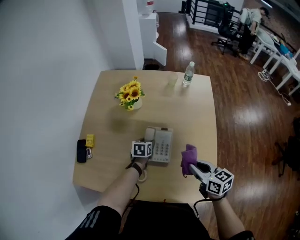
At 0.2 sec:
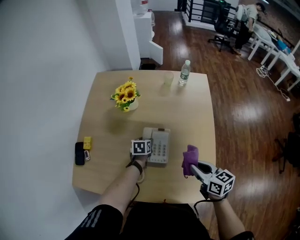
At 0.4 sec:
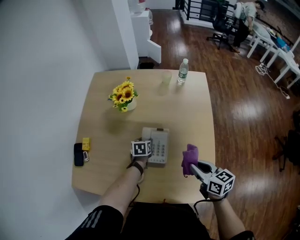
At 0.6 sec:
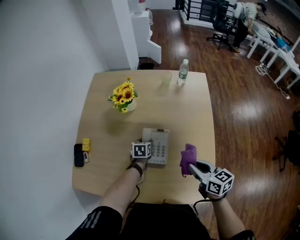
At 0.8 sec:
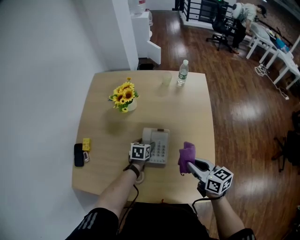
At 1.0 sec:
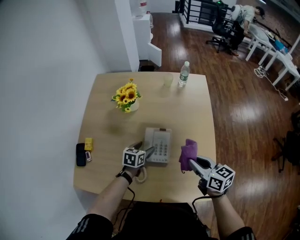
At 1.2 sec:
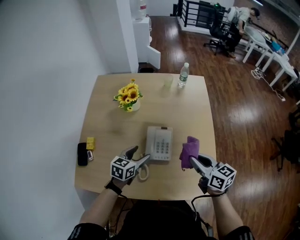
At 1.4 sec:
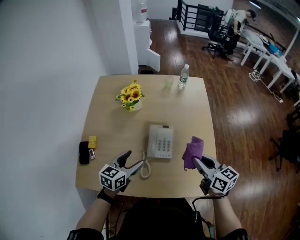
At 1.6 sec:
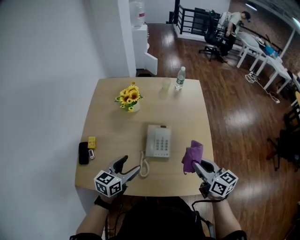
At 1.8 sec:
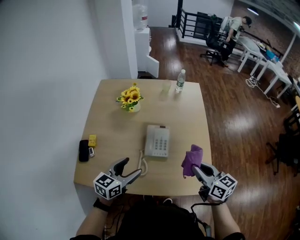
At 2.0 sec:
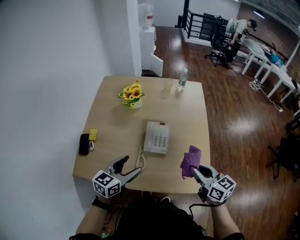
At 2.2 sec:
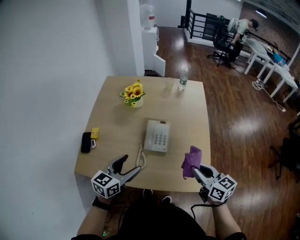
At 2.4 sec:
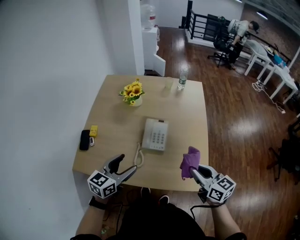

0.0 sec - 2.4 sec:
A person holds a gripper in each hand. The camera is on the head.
0.0 sec - 1.2 sec: The left gripper moves upward and backward, approximately 15 cm, and turns by some 30 degrees.
1.2 sec - 2.4 sec: The right gripper travels backward by about 15 cm; the left gripper goes about 20 cm backward and upward.

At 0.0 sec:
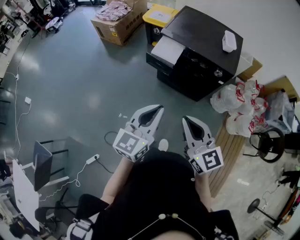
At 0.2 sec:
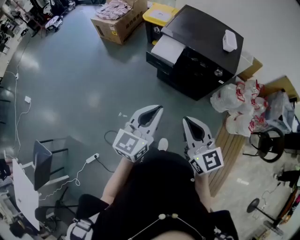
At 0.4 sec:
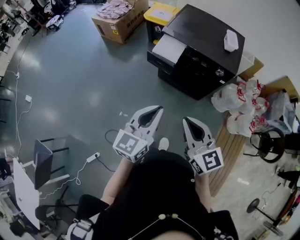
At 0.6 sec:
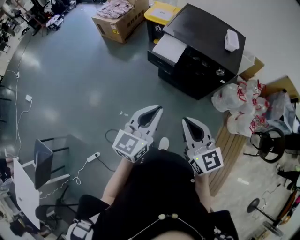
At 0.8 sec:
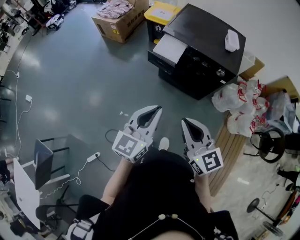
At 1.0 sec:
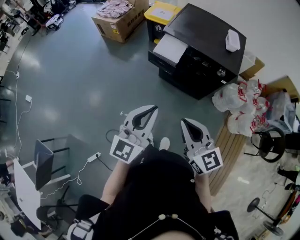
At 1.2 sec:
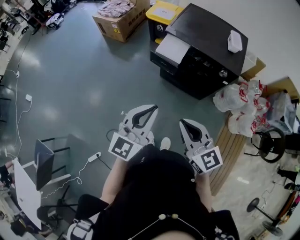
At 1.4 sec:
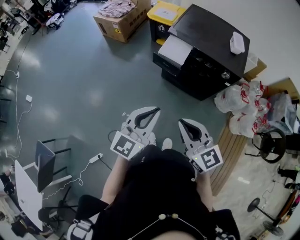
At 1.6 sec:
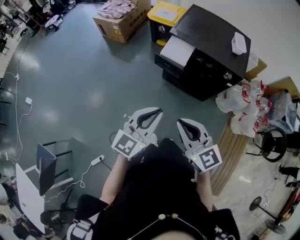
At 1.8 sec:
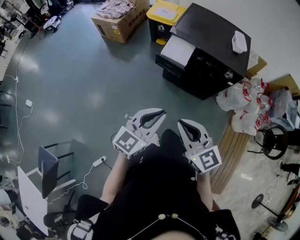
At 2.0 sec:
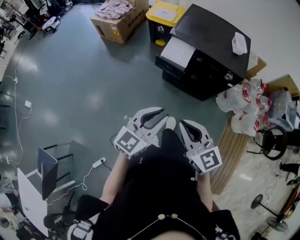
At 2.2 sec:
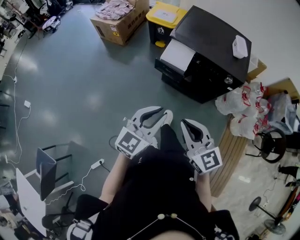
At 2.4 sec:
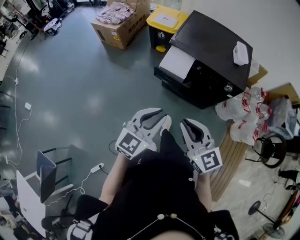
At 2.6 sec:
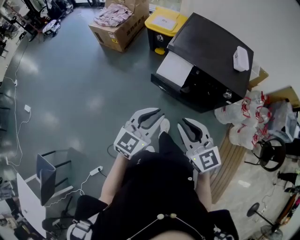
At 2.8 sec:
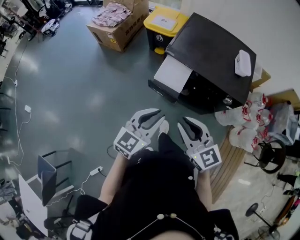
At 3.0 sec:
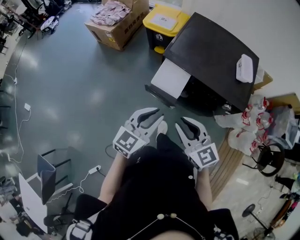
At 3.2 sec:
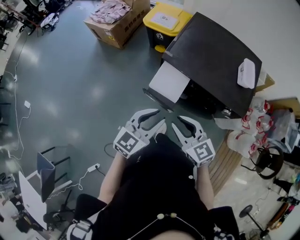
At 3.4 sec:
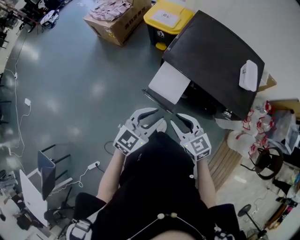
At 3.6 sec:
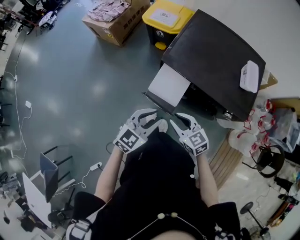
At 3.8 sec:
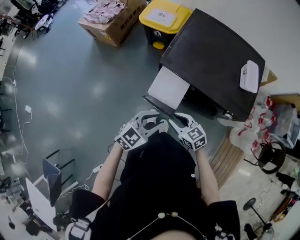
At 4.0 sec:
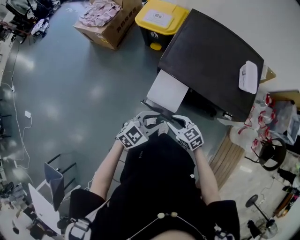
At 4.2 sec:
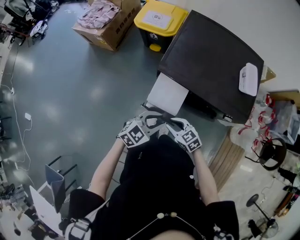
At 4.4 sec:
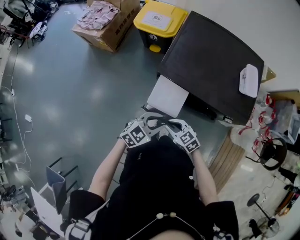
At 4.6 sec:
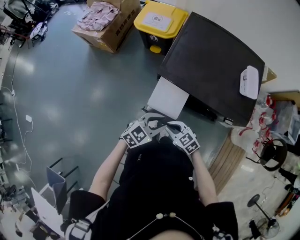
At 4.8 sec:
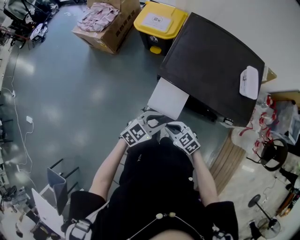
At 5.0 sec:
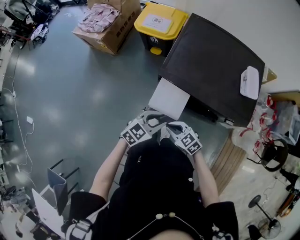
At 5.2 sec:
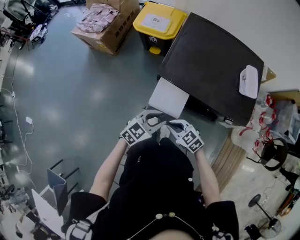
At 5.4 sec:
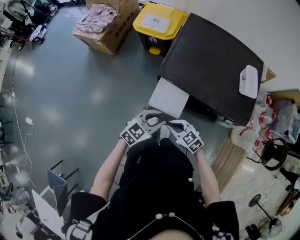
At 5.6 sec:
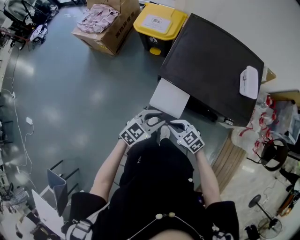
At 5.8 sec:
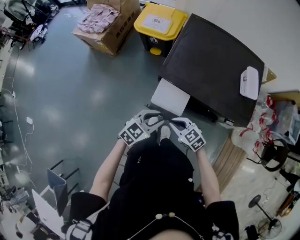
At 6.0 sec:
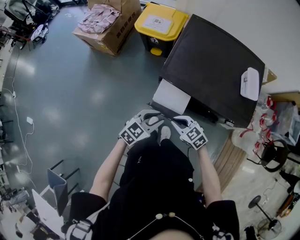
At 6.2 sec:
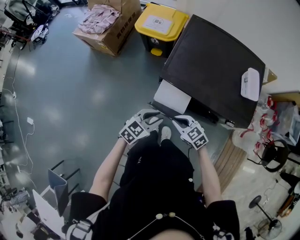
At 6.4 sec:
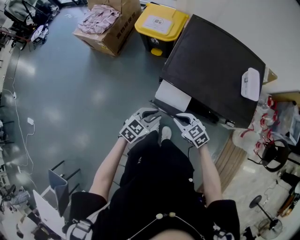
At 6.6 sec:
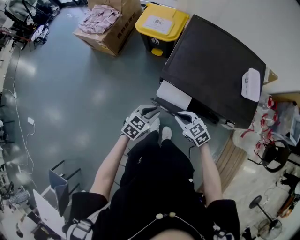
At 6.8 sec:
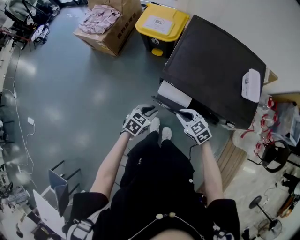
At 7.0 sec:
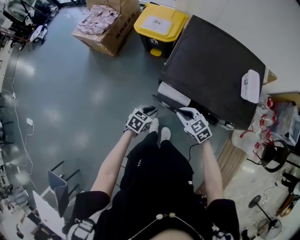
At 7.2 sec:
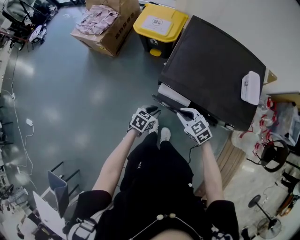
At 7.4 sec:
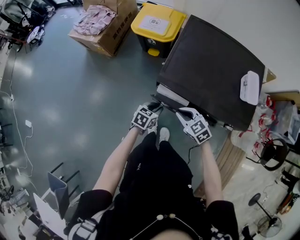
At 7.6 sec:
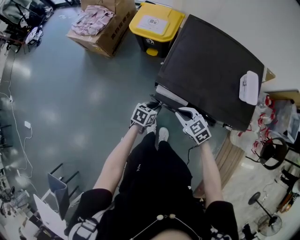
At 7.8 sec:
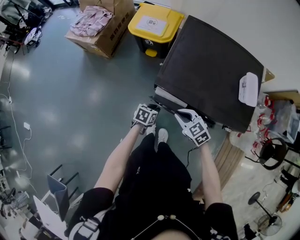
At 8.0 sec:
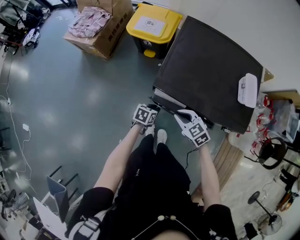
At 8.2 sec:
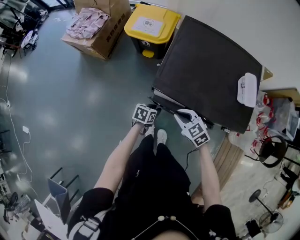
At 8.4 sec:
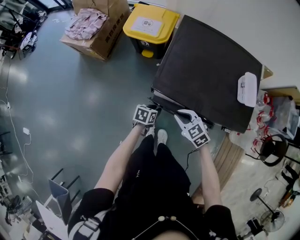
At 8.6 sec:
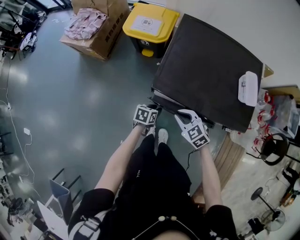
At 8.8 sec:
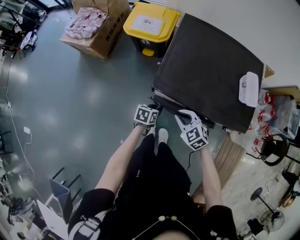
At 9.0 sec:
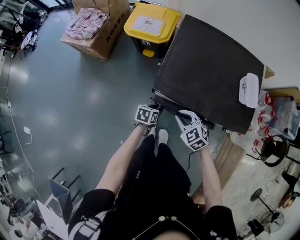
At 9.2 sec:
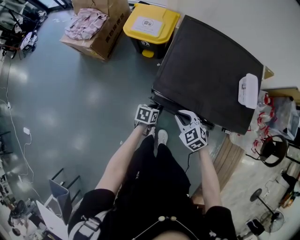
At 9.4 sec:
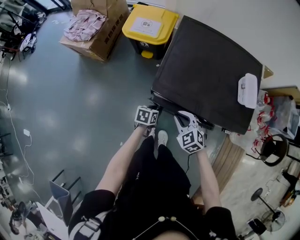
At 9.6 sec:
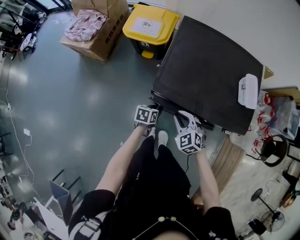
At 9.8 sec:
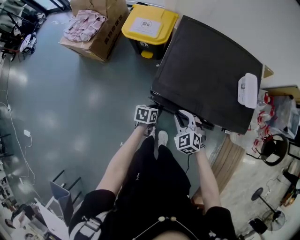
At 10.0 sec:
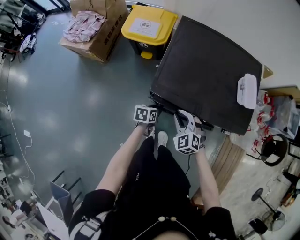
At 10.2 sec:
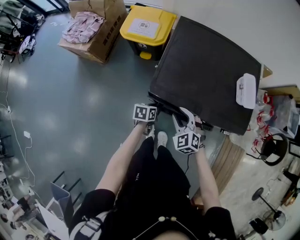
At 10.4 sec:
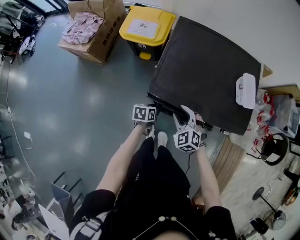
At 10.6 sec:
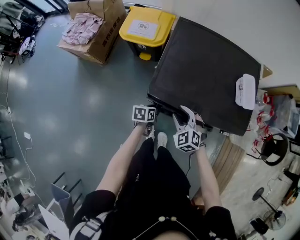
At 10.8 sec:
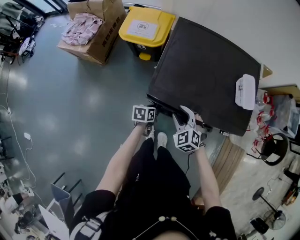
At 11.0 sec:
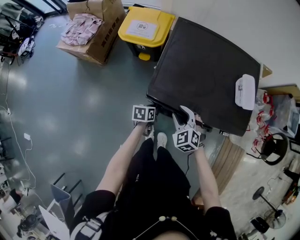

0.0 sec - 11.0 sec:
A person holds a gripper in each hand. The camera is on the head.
0.0 sec - 1.6 sec: The two grippers go approximately 5 cm to the left.
1.6 sec - 3.2 sec: Both grippers travel together forward, some 25 cm. The right gripper opens its fingers; the left gripper opens up.
3.2 sec - 4.8 sec: The grippers both shift downward by approximately 15 cm. The left gripper rotates approximately 30 degrees. The right gripper rotates some 20 degrees.
4.8 sec - 6.2 sec: The right gripper shifts by approximately 5 cm.
6.2 sec - 7.8 sec: The right gripper is displaced forward by about 5 cm, while the left gripper heads downward and forward, covering roughly 15 cm, and changes its angle by approximately 40 degrees.
7.8 sec - 9.4 sec: The grippers move only a little.
9.4 sec - 11.0 sec: The right gripper opens up.

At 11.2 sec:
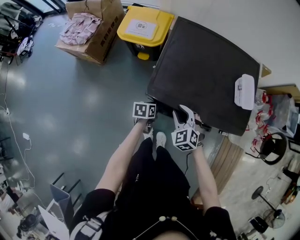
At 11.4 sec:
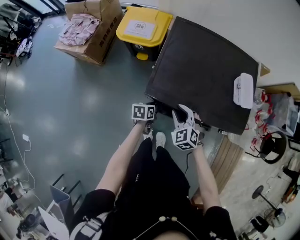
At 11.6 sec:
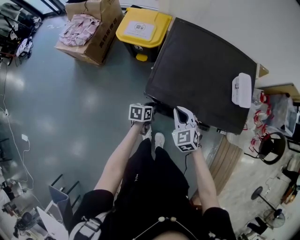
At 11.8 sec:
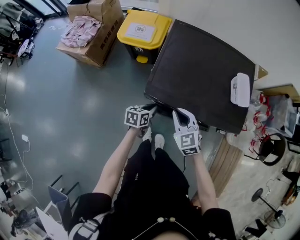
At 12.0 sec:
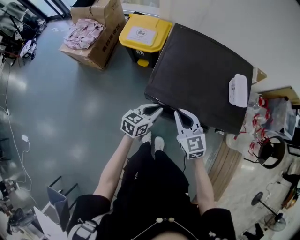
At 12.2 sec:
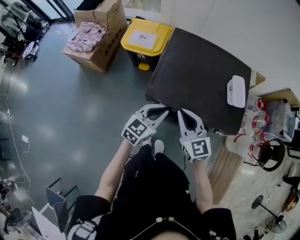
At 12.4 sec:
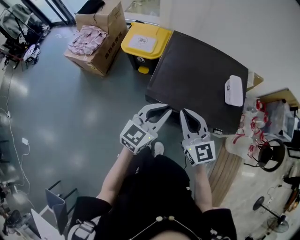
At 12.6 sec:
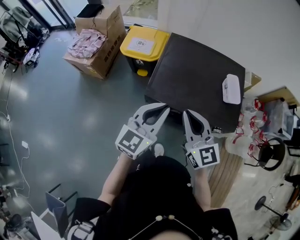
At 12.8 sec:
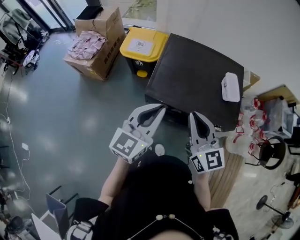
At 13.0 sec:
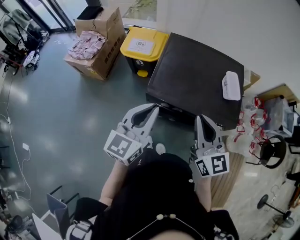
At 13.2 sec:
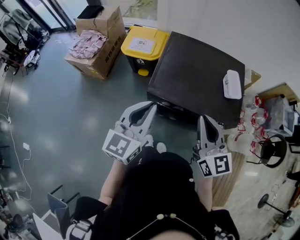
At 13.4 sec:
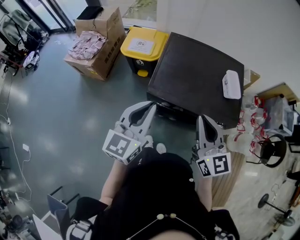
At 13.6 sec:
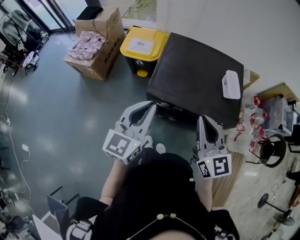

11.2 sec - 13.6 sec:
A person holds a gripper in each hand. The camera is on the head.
11.2 sec - 12.4 sec: The left gripper heads upward, covering approximately 35 cm, and points its fingers some 40 degrees further upward. Meanwhile the right gripper shifts approximately 20 cm upward, tips its fingers upward by roughly 40 degrees, and closes its fingers.
12.4 sec - 13.6 sec: The left gripper travels upward and to the left by approximately 10 cm, while the right gripper shifts approximately 10 cm upward, backward and to the right.

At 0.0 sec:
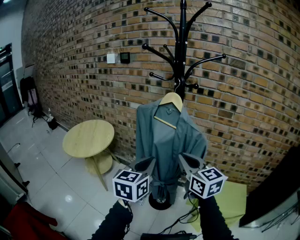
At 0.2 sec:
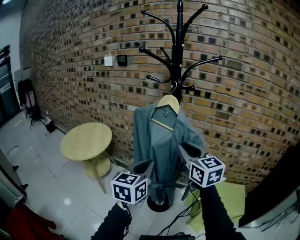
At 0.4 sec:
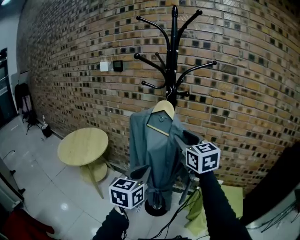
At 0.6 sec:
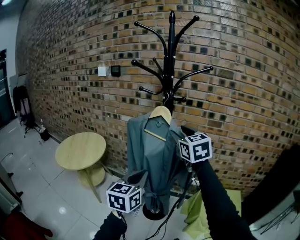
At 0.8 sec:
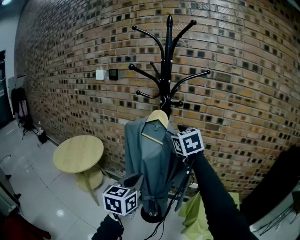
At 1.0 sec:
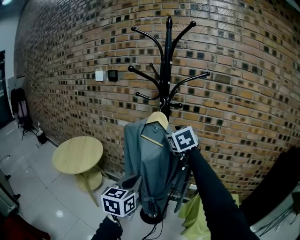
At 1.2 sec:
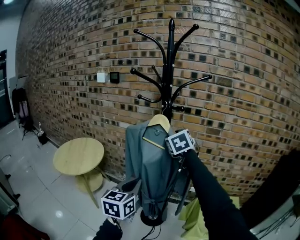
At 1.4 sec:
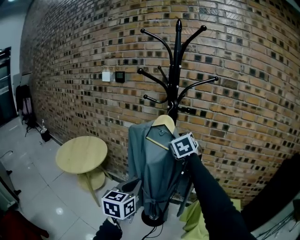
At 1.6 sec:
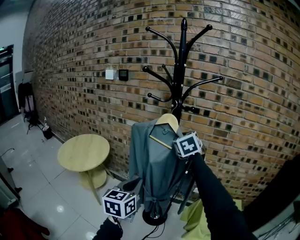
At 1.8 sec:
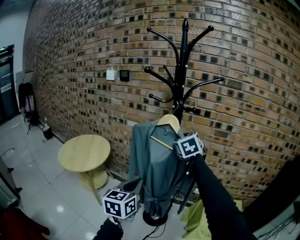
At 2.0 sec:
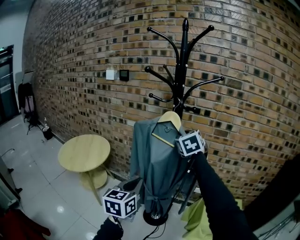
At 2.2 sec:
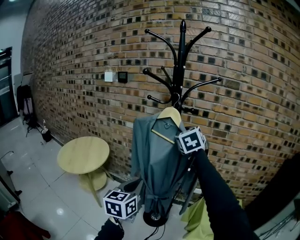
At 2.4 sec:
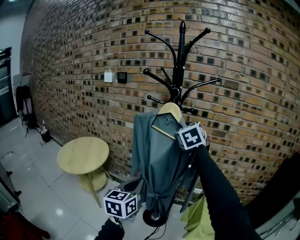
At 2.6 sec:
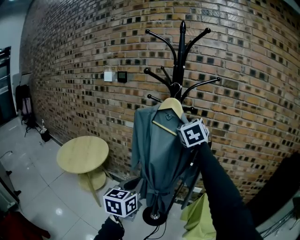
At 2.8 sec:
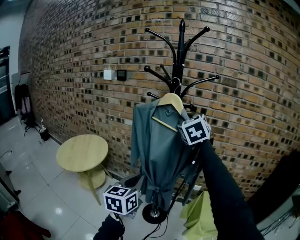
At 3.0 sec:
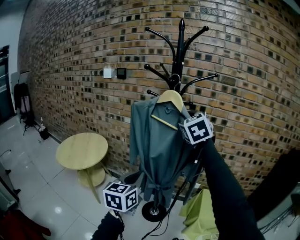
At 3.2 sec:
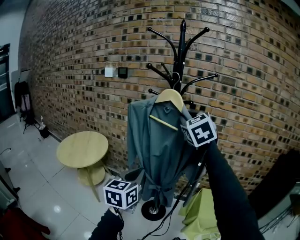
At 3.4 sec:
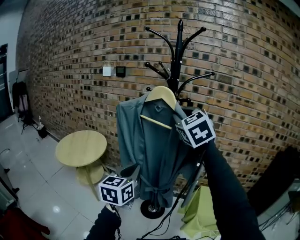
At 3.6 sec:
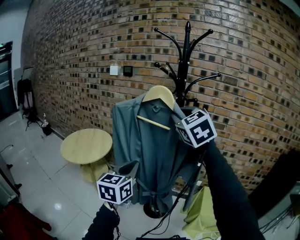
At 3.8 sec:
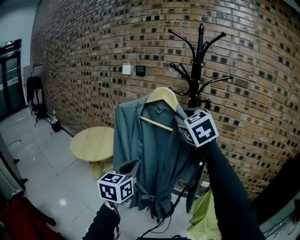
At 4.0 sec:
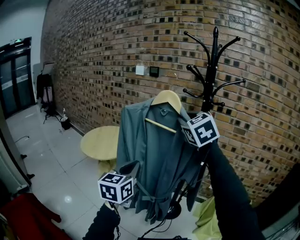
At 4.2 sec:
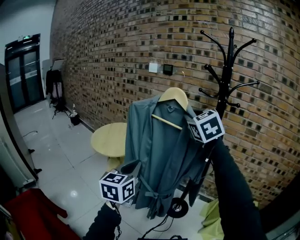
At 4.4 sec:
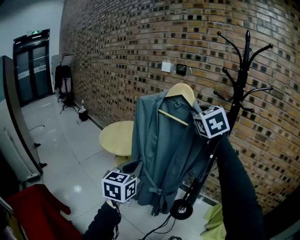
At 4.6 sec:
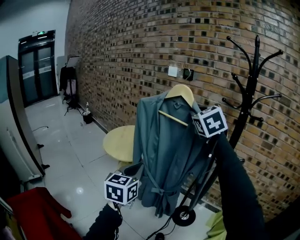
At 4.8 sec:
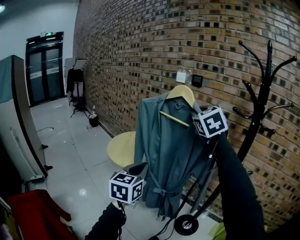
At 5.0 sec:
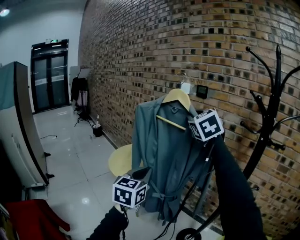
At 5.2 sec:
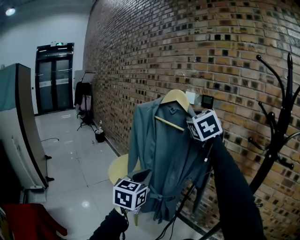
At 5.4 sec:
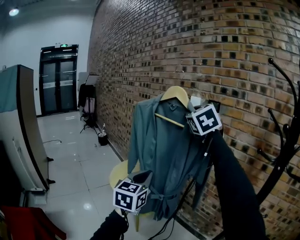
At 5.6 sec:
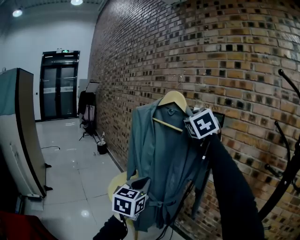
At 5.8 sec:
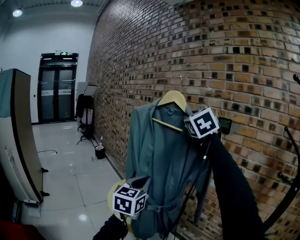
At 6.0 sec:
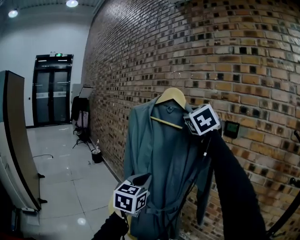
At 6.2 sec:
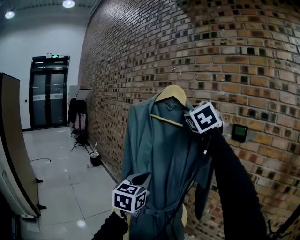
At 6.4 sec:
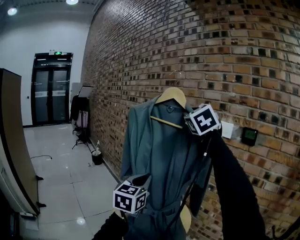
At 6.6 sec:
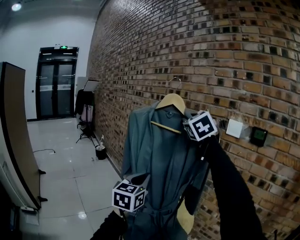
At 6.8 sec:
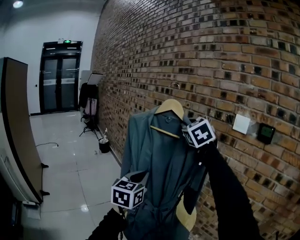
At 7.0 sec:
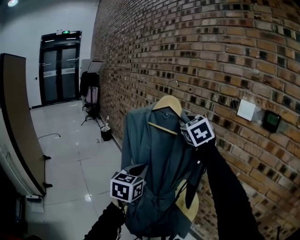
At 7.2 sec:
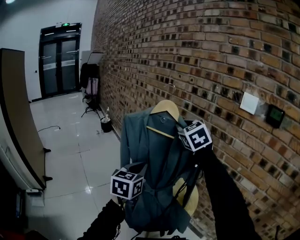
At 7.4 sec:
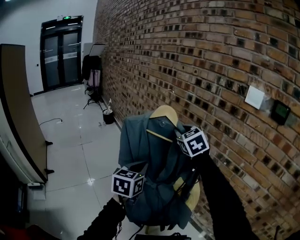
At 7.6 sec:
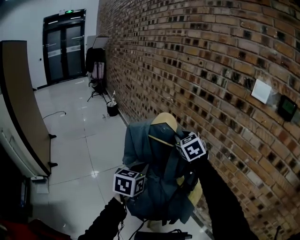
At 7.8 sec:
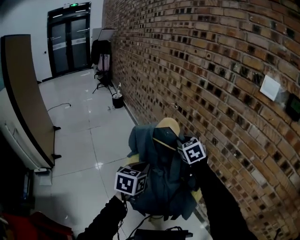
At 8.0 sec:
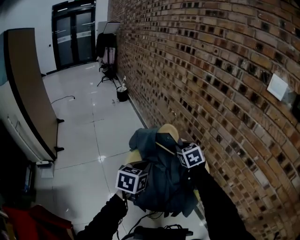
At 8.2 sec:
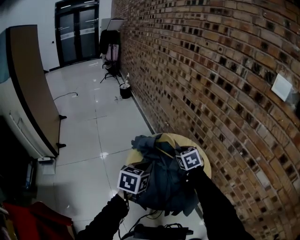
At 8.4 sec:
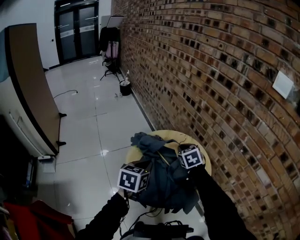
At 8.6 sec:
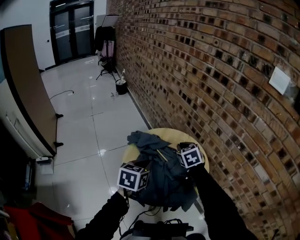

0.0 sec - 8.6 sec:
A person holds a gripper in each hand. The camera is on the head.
0.0 sec - 1.4 sec: The right gripper shifts about 20 cm forward, rotates some 40 degrees, and opens, then closes once more.
1.4 sec - 2.8 sec: The right gripper is displaced upward and backward by approximately 10 cm.
2.8 sec - 4.4 sec: Both grippers move to the left, some 30 cm. The right gripper turns by about 20 degrees.
4.4 sec - 5.8 sec: The two grippers travel together, forward and to the left, about 60 cm.
5.8 sec - 7.2 sec: The pair of grippers is taken forward and to the left, some 40 cm. The right gripper travels downward by approximately 20 cm.
7.2 sec - 8.6 sec: The left gripper goes approximately 20 cm downward, and rotates approximately 20 degrees. The right gripper moves downward, some 35 cm, and turns by approximately 30 degrees.
